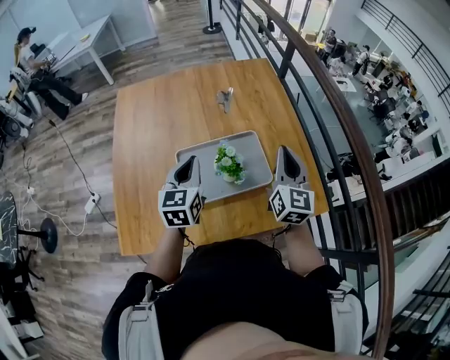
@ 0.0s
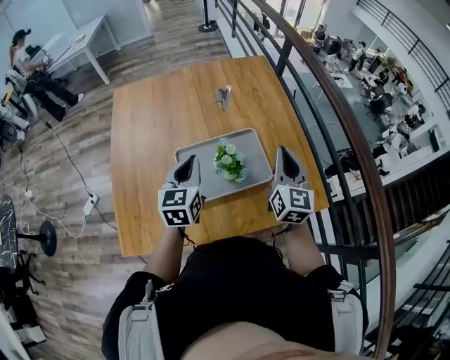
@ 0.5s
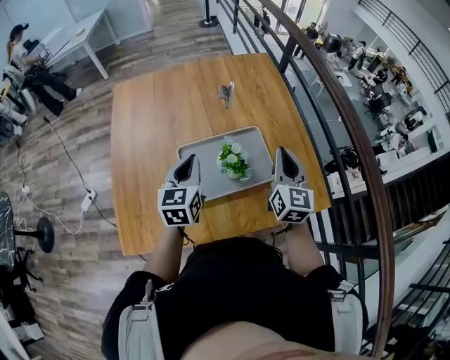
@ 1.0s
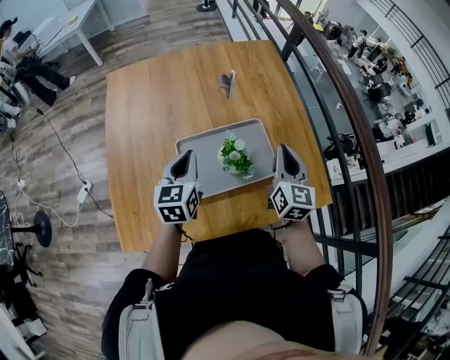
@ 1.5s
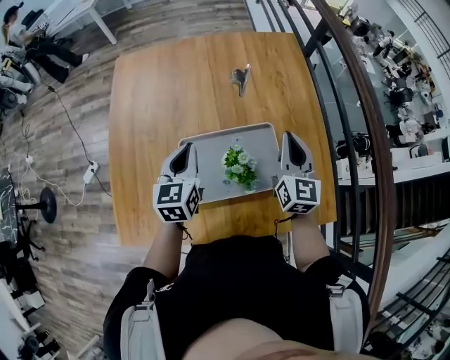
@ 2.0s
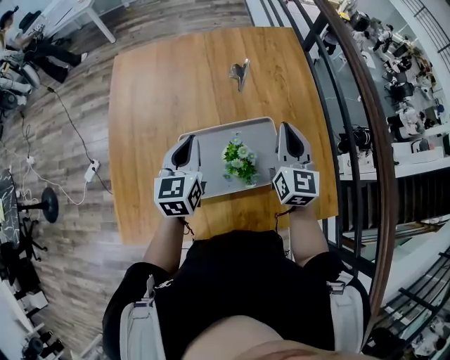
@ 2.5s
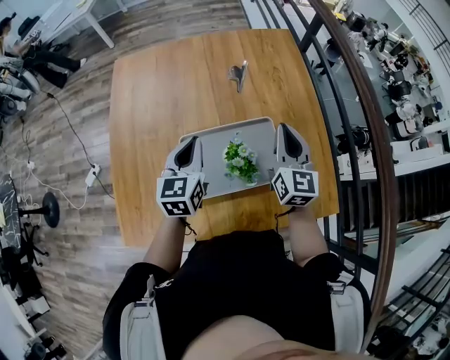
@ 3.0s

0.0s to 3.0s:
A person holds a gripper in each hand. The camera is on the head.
0.0s to 1.5s: The right gripper heads downward, covering some 5 cm; the left gripper moves some 5 cm.
1.5s to 3.0s: Both grippers move forward, some 10 cm.

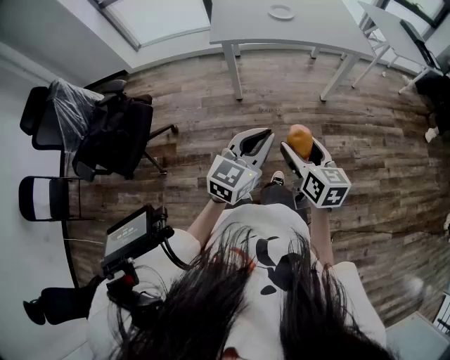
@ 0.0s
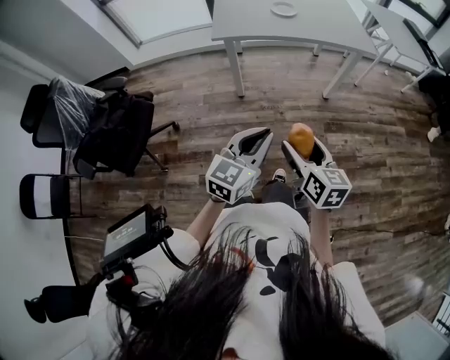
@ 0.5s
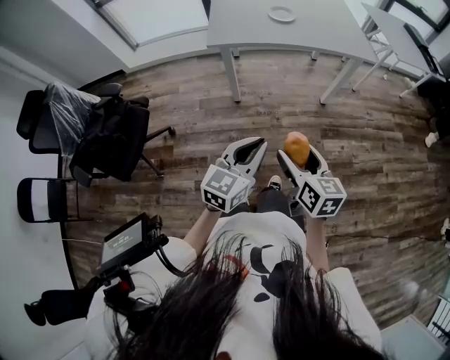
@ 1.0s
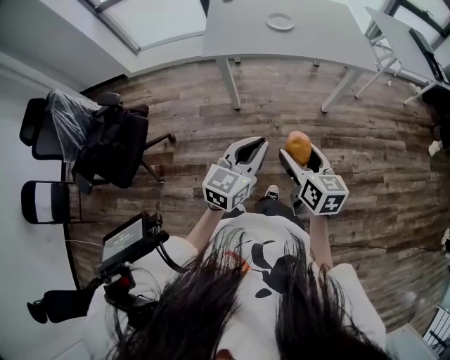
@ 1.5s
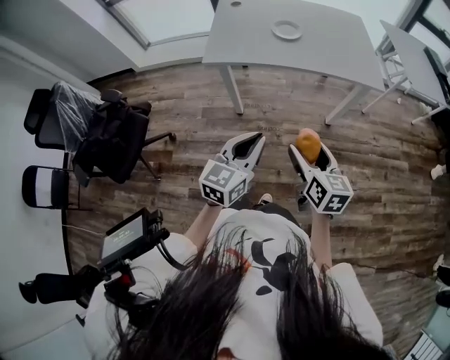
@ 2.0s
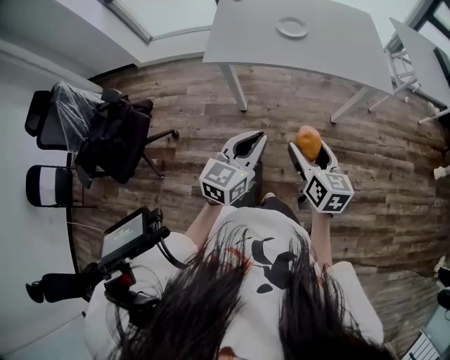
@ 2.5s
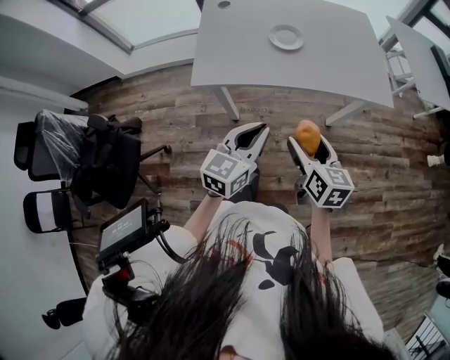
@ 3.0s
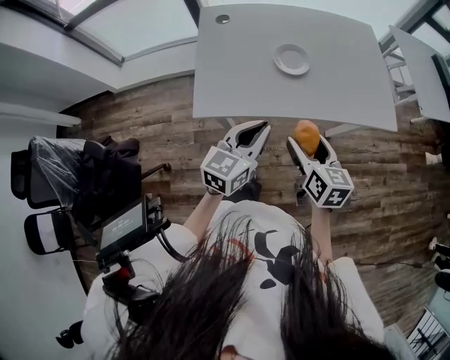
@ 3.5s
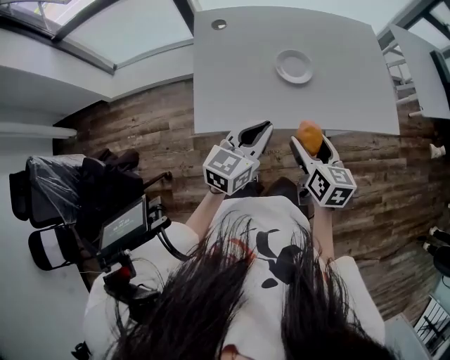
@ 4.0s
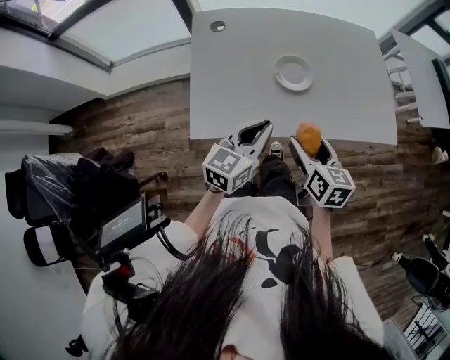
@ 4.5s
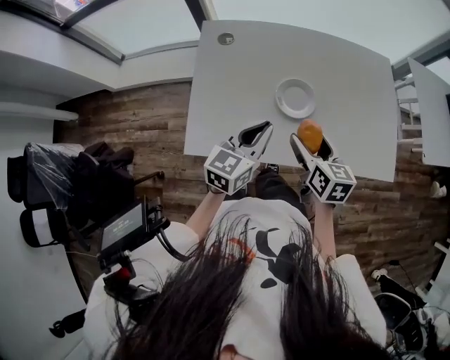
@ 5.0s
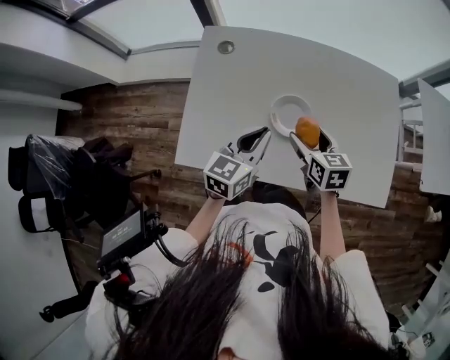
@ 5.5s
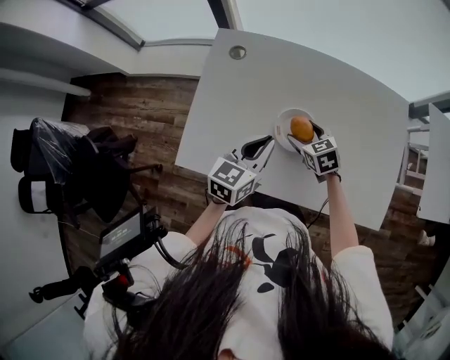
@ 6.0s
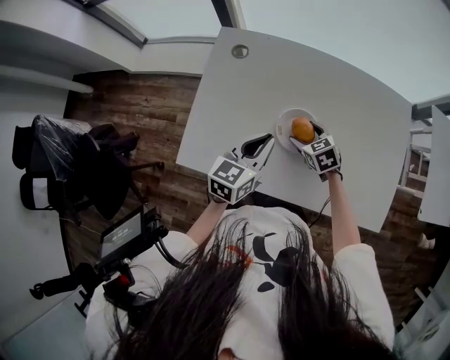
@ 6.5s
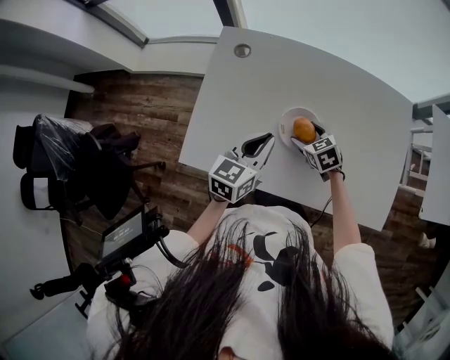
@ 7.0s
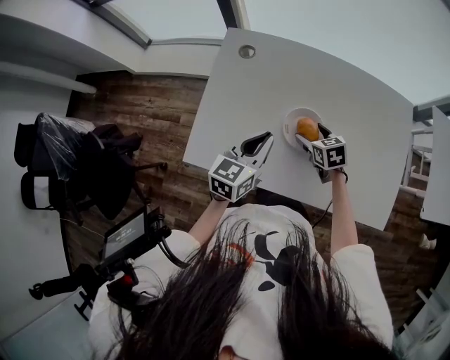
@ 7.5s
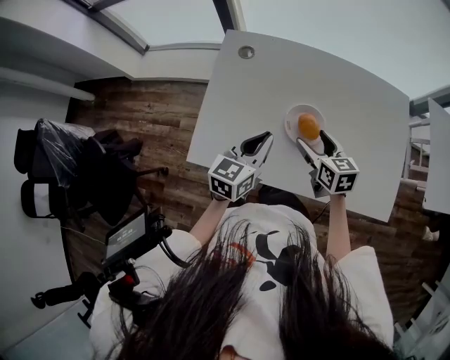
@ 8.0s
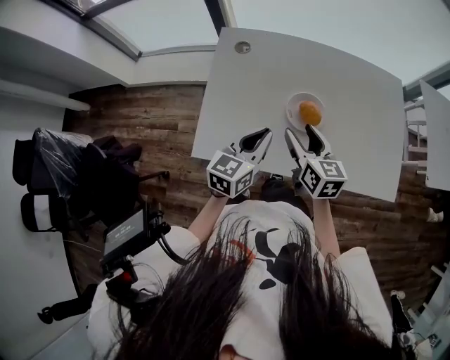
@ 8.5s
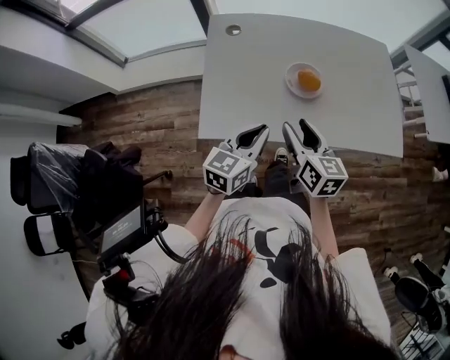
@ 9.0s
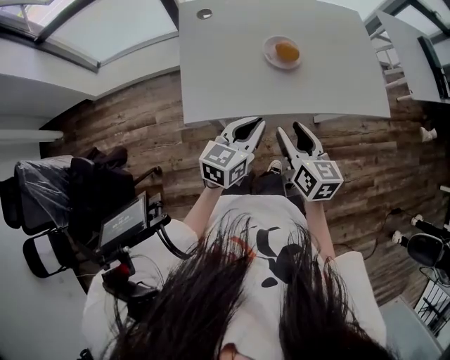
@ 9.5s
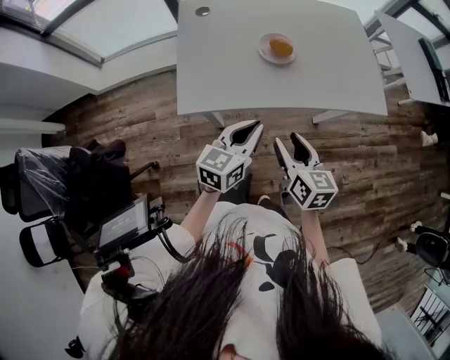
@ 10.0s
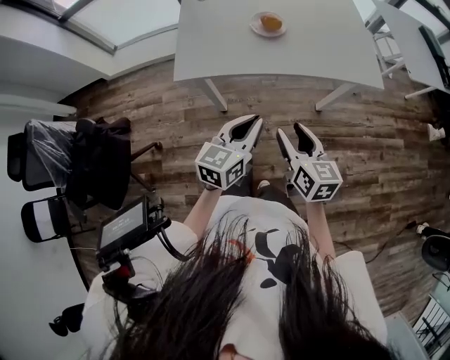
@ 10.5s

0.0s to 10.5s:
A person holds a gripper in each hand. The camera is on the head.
0.0s to 2.0s: The right gripper moves forward and to the right, roughly 20 cm; the left gripper goes roughly 15 cm forward.
2.0s to 4.0s: The grippers both shift forward by about 35 cm.
4.0s to 6.5s: The left gripper moves some 20 cm, and swivels about 20 degrees; the right gripper shifts by roughly 30 cm, and changes its angle by approximately 60 degrees.
6.5s to 8.5s: The right gripper heads upward and backward, covering roughly 15 cm, and swivels some 40 degrees.
8.5s to 10.5s: The two grippers go approximately 35 cm backward.

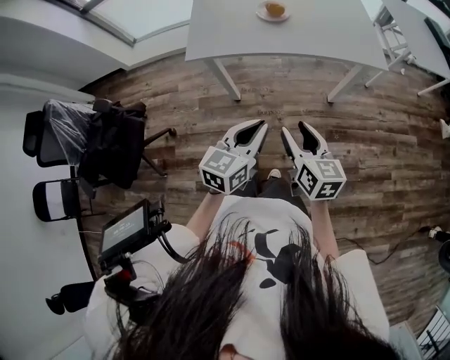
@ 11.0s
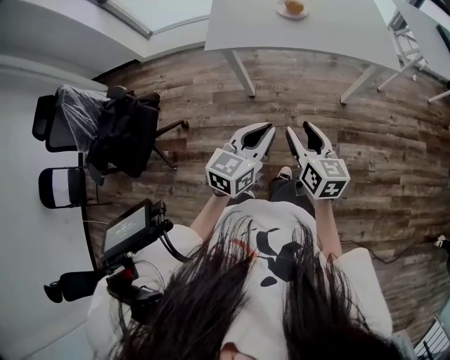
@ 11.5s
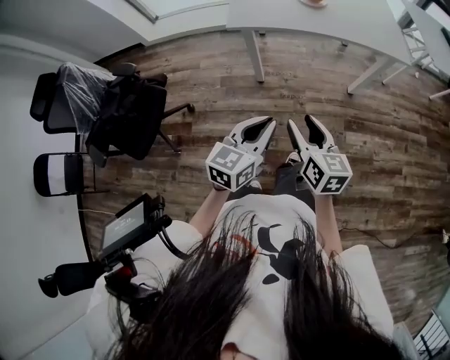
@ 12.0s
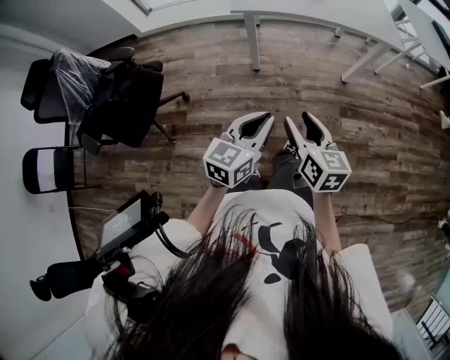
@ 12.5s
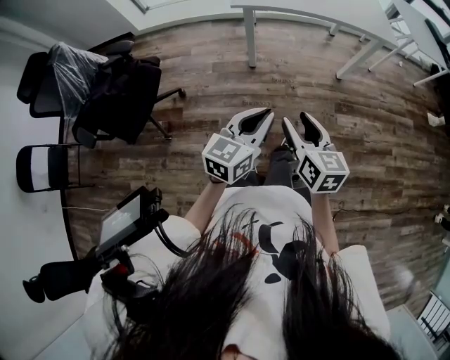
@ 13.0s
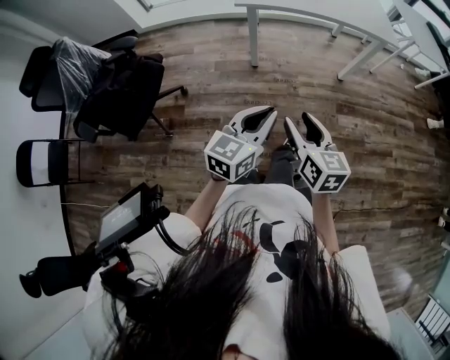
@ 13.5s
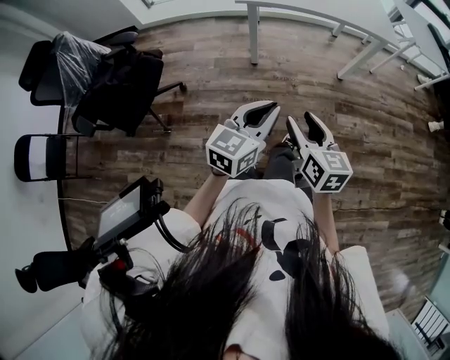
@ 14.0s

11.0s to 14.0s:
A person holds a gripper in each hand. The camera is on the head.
11.0s to 12.5s: The two grippers go roughly 25 cm backward and to the left.
12.5s to 14.0s: The left gripper shifts by about 5 cm, while the right gripper heads backward, covering about 5 cm.

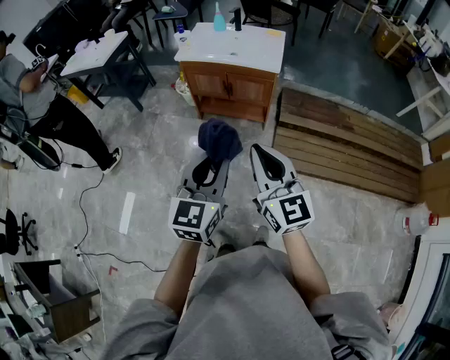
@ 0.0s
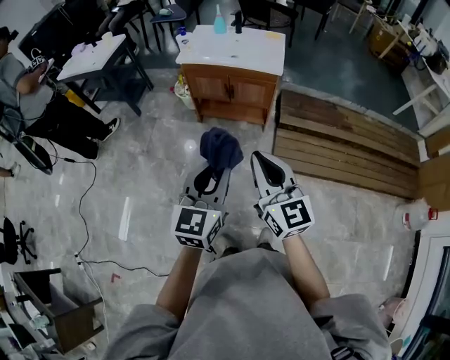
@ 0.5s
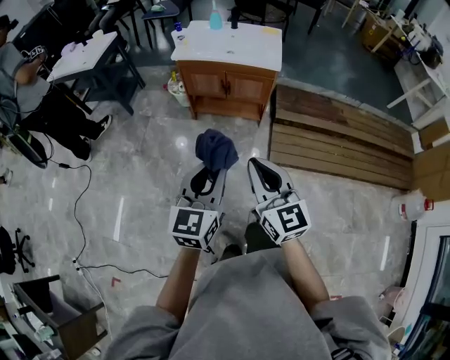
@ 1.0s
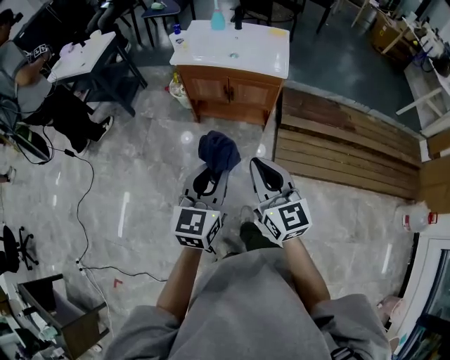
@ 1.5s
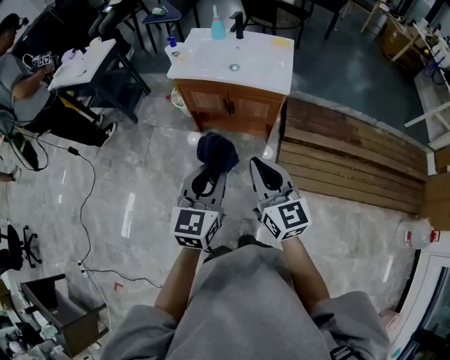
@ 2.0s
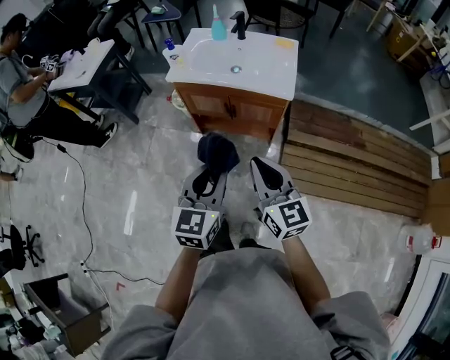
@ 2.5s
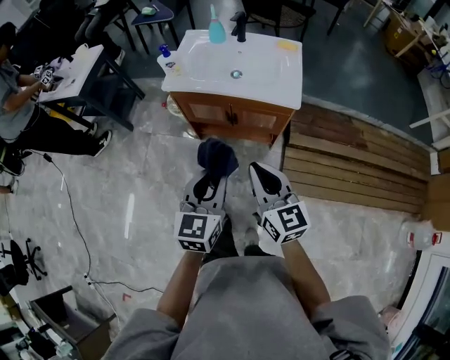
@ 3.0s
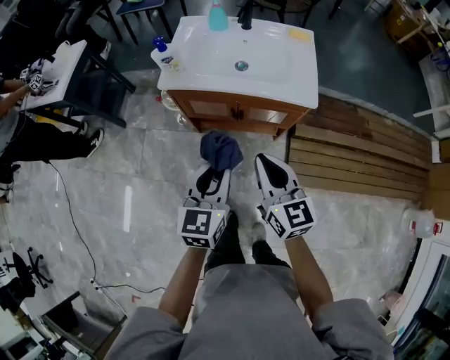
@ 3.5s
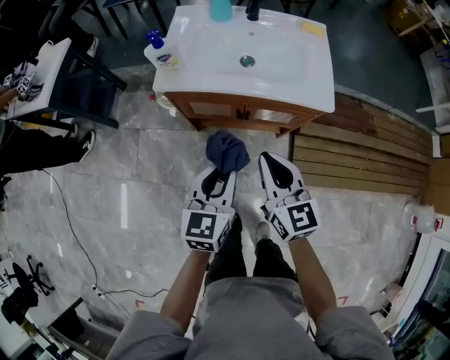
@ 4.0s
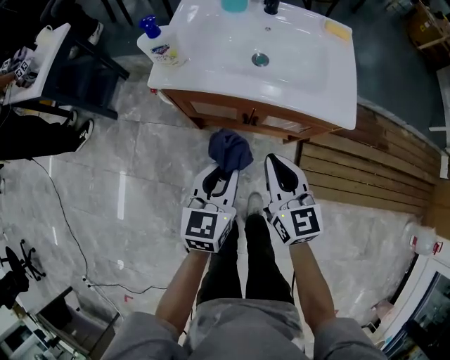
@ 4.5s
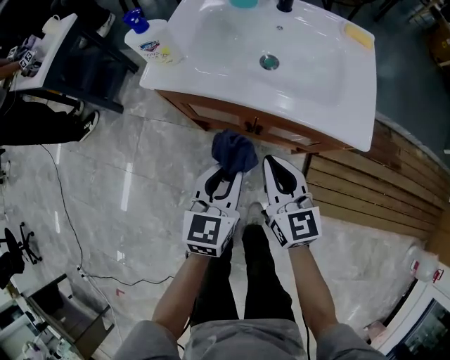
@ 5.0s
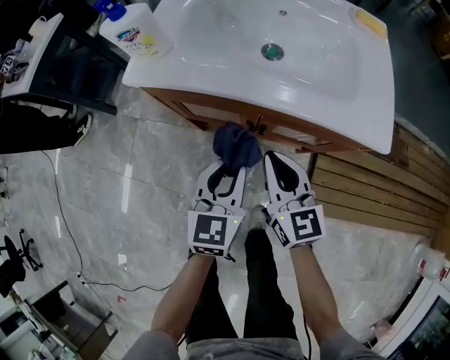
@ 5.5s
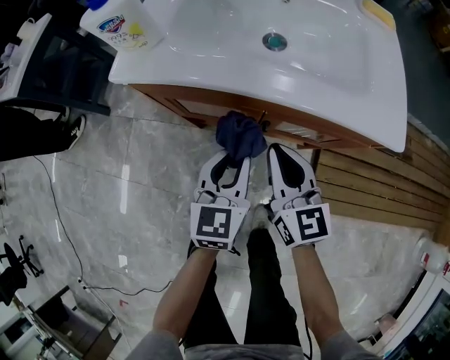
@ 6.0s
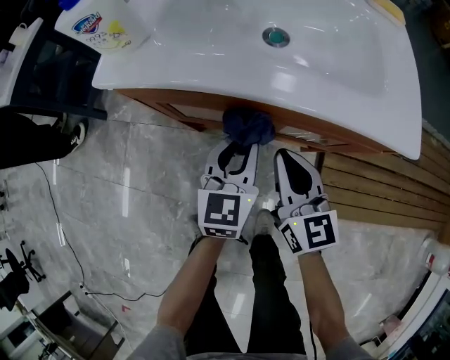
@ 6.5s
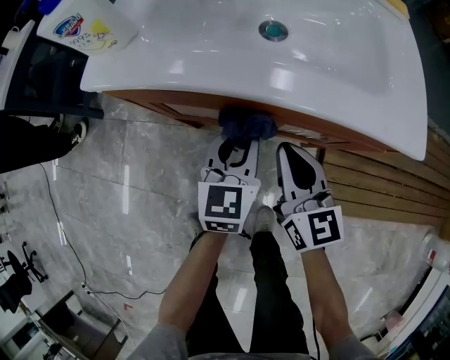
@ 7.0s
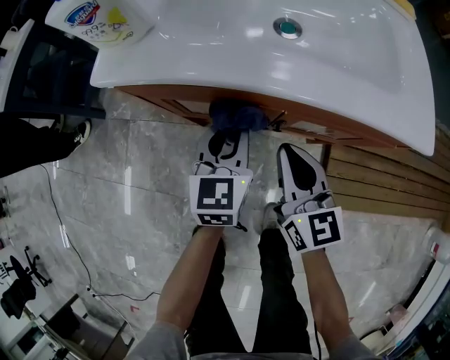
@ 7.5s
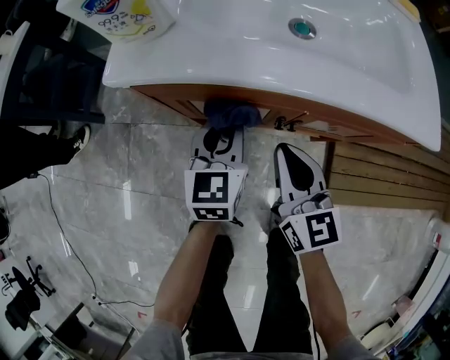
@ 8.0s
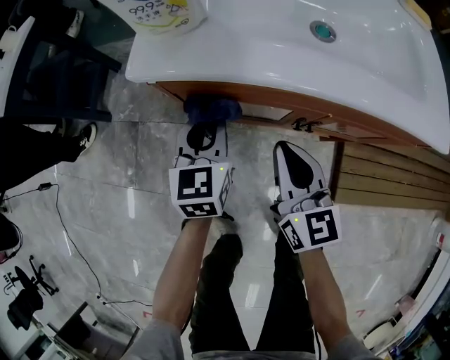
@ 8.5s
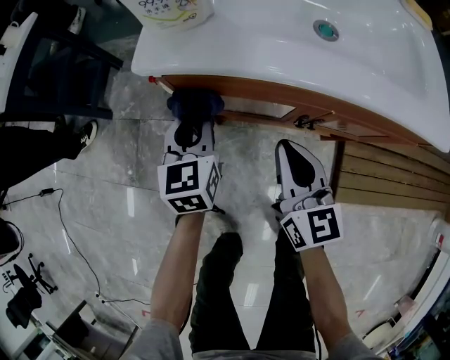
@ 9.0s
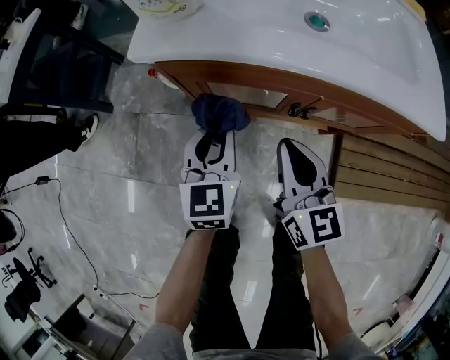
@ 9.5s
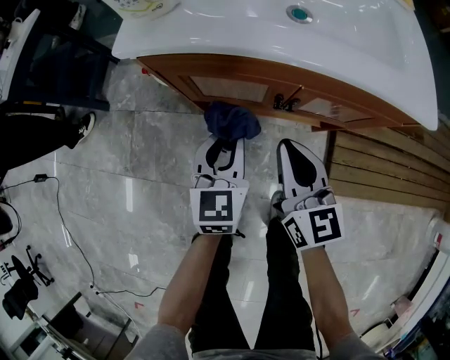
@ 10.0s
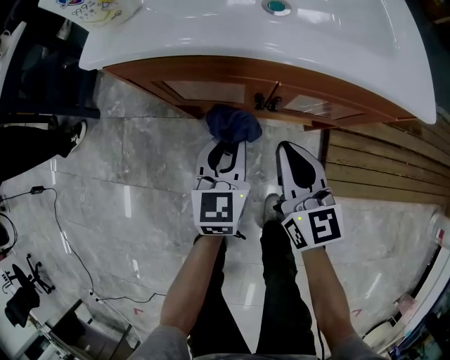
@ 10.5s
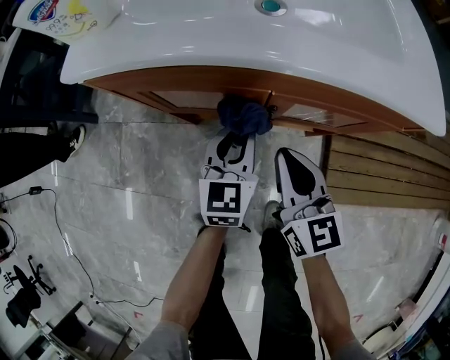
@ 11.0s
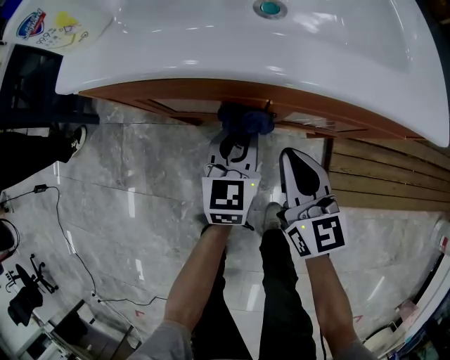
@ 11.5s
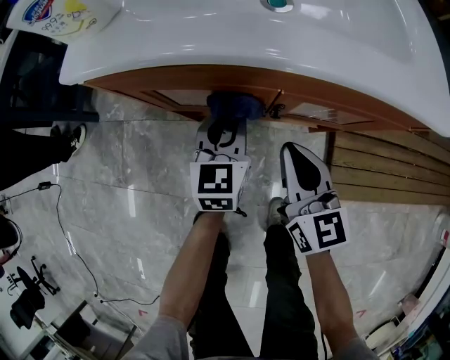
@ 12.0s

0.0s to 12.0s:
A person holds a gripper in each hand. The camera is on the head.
0.0s to 2.0s: Both grippers travel together forward, approximately 20 cm.
2.0s to 4.0s: Both grippers travel together forward and downward, some 30 cm.
4.0s to 6.0s: Both grippers travel together downward and forward, about 25 cm.
6.0s to 8.0s: The left gripper heads forward, to the left and downward, covering roughly 15 cm, while the right gripper is displaced to the left by roughly 5 cm.
8.0s to 10.0s: The left gripper goes roughly 10 cm backward, and travels to the left and back again, about 10 cm each way.
10.0s to 12.0s: The left gripper heads forward, downward and to the right, covering about 10 cm; the right gripper travels to the right and downward by about 10 cm.
